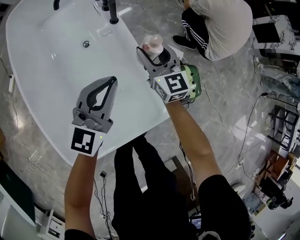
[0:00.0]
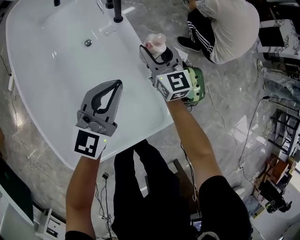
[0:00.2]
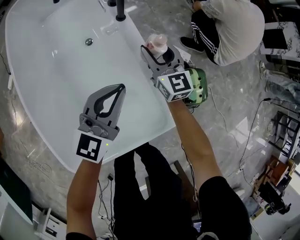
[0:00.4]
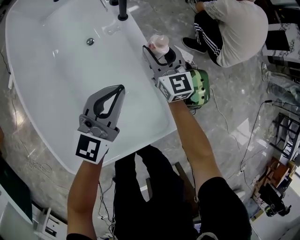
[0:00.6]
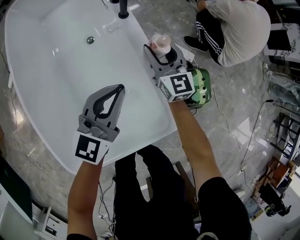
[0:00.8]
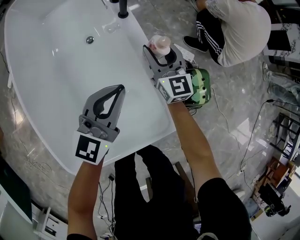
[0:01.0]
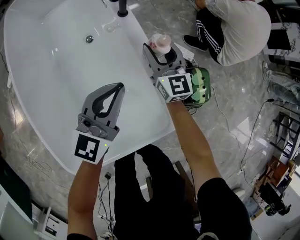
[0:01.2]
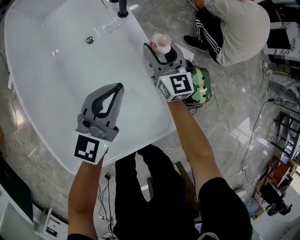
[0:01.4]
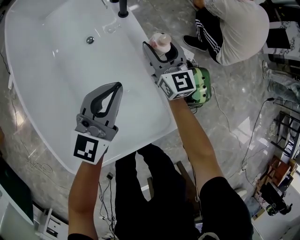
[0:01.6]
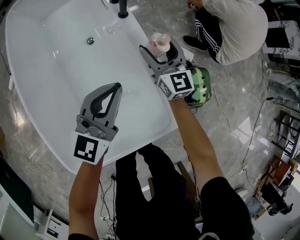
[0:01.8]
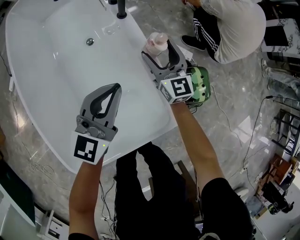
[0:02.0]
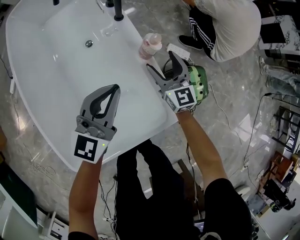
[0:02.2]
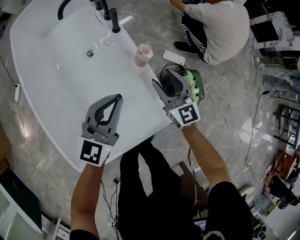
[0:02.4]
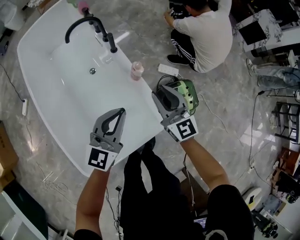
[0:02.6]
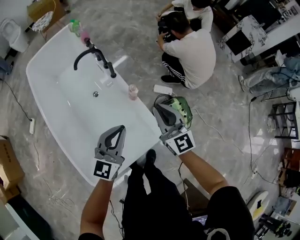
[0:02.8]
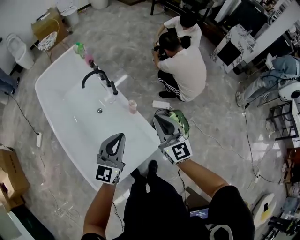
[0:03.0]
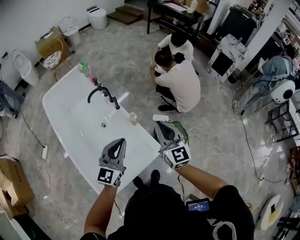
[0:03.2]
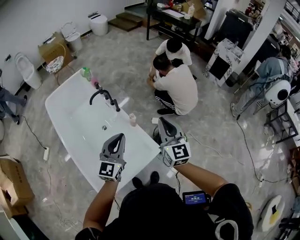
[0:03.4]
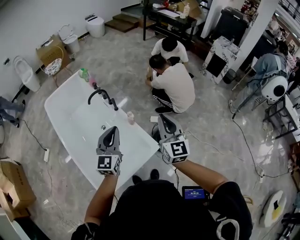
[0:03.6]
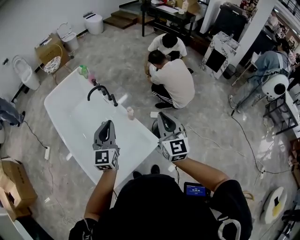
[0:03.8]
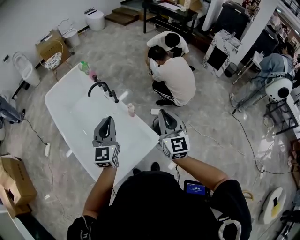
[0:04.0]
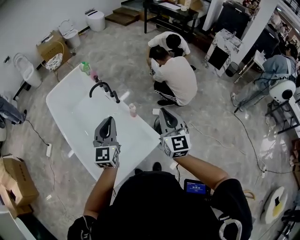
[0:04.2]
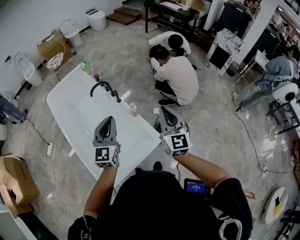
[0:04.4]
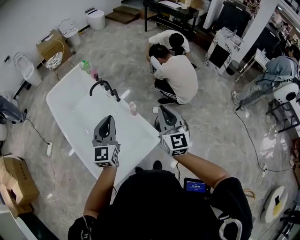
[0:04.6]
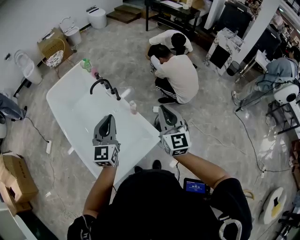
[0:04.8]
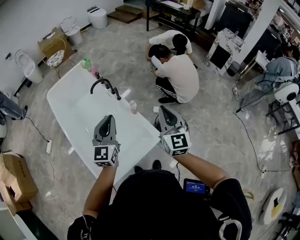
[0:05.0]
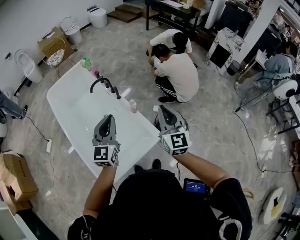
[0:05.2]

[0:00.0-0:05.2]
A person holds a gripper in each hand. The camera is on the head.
0:00.0 to 0:01.8: The grippers both shift downward by roughly 5 cm.
0:01.8 to 0:03.4: The right gripper travels upward and backward by roughly 60 cm, changes its angle by about 20 degrees, and closes. The left gripper is displaced upward by approximately 40 cm.
0:03.4 to 0:05.2: The grippers make only small movements.

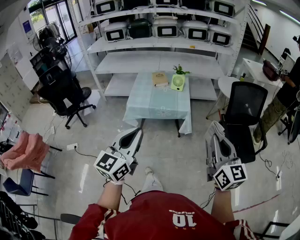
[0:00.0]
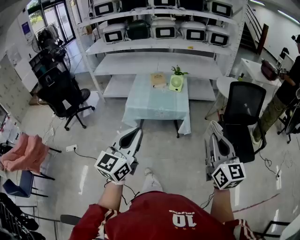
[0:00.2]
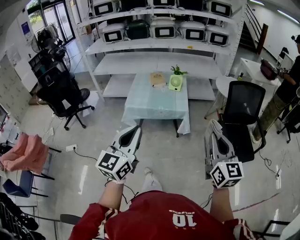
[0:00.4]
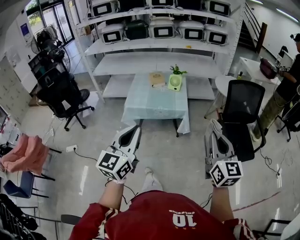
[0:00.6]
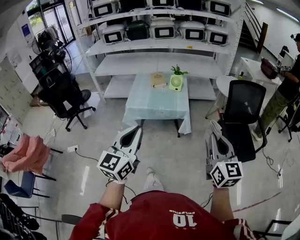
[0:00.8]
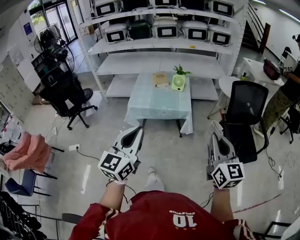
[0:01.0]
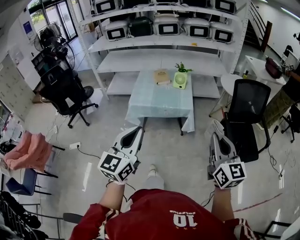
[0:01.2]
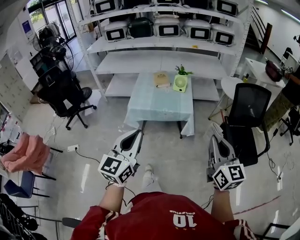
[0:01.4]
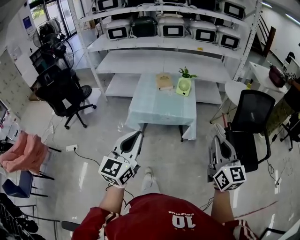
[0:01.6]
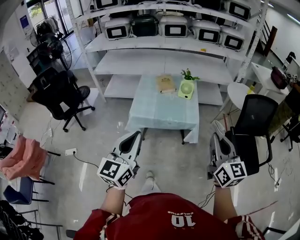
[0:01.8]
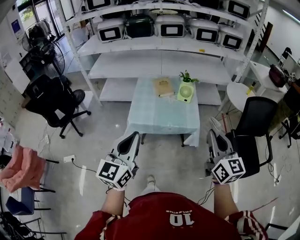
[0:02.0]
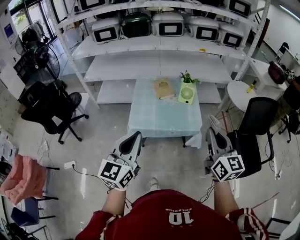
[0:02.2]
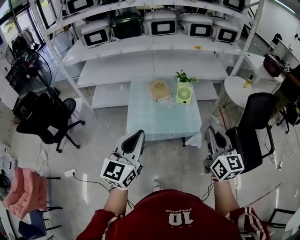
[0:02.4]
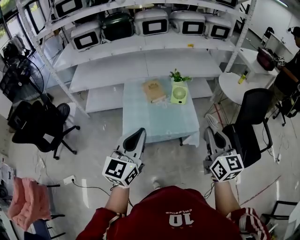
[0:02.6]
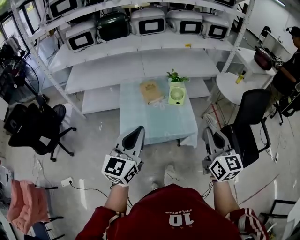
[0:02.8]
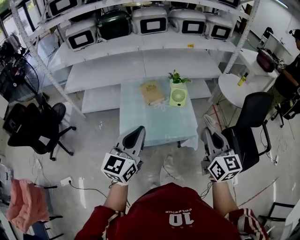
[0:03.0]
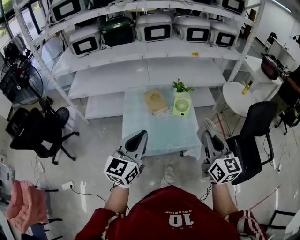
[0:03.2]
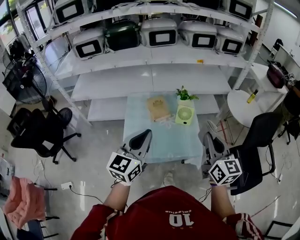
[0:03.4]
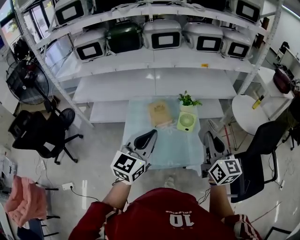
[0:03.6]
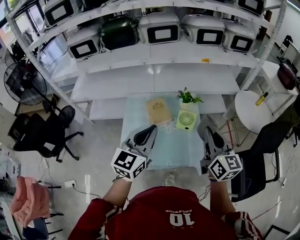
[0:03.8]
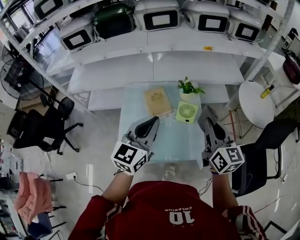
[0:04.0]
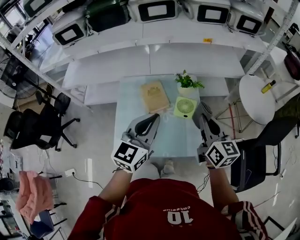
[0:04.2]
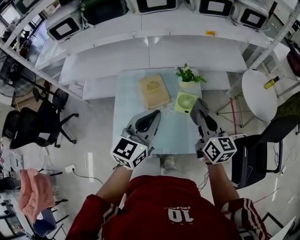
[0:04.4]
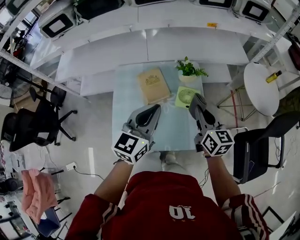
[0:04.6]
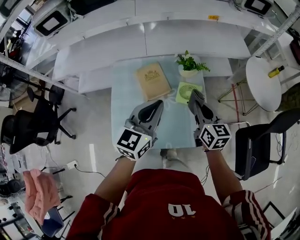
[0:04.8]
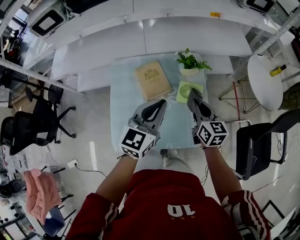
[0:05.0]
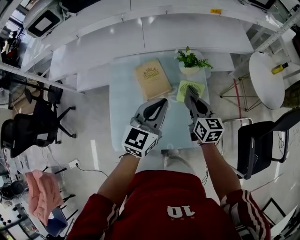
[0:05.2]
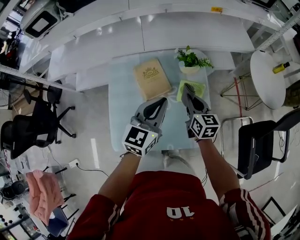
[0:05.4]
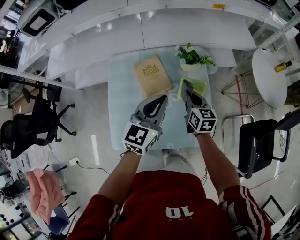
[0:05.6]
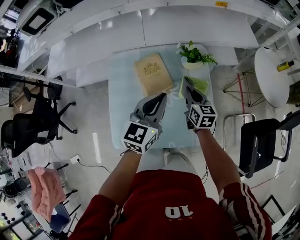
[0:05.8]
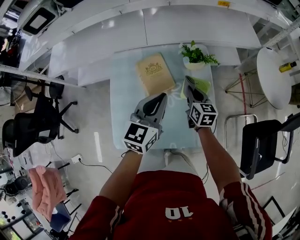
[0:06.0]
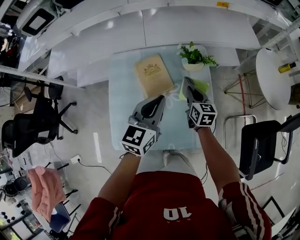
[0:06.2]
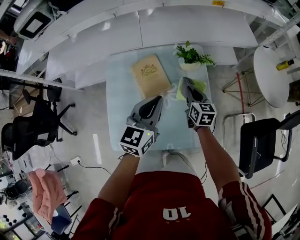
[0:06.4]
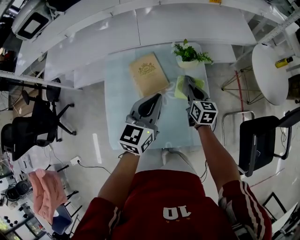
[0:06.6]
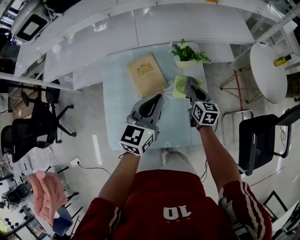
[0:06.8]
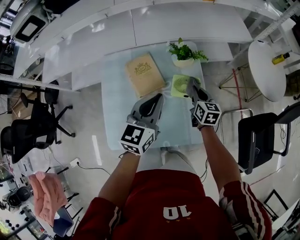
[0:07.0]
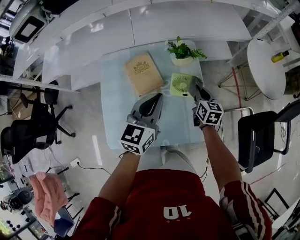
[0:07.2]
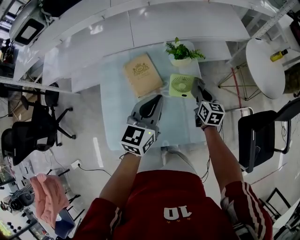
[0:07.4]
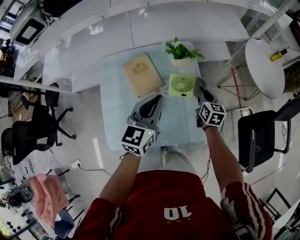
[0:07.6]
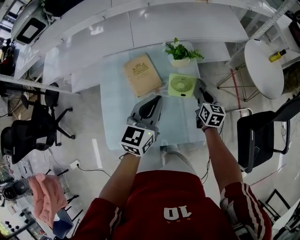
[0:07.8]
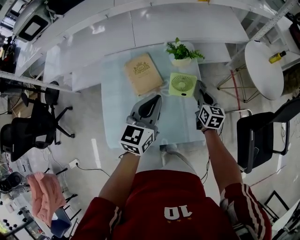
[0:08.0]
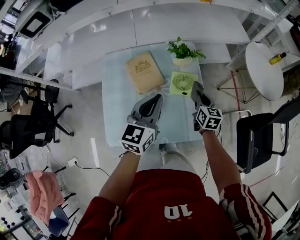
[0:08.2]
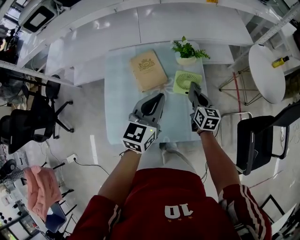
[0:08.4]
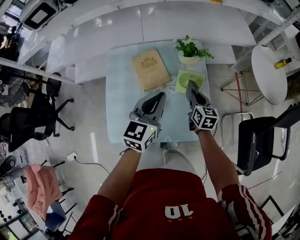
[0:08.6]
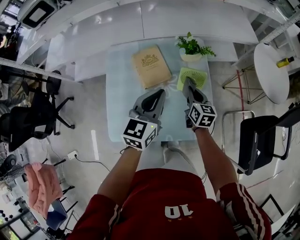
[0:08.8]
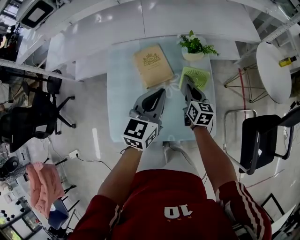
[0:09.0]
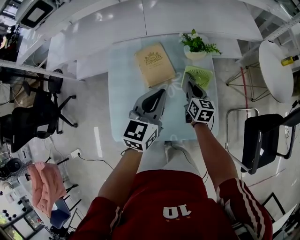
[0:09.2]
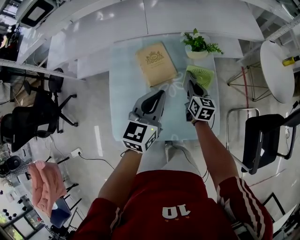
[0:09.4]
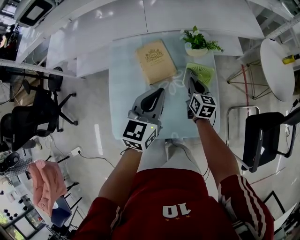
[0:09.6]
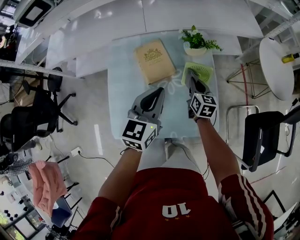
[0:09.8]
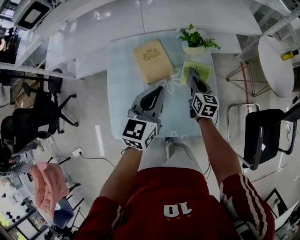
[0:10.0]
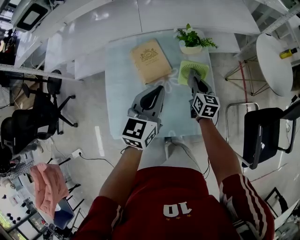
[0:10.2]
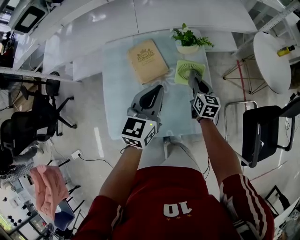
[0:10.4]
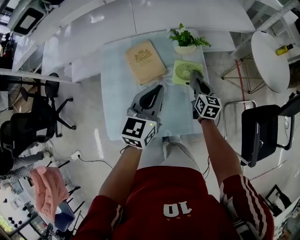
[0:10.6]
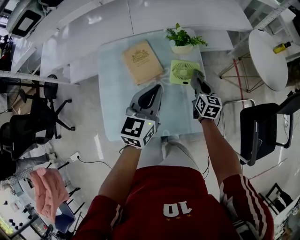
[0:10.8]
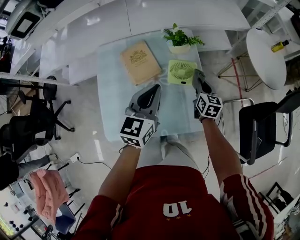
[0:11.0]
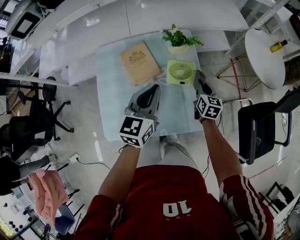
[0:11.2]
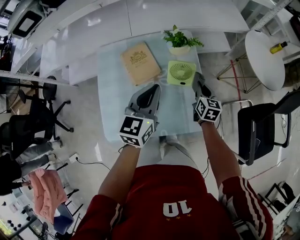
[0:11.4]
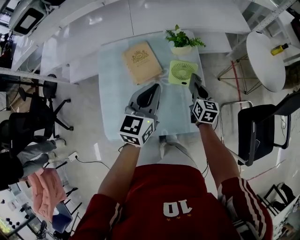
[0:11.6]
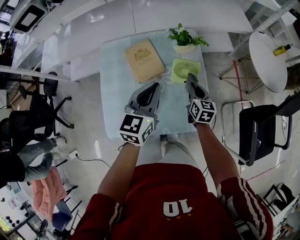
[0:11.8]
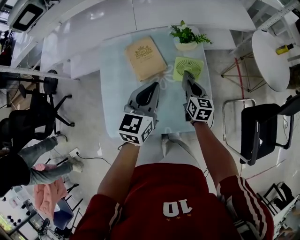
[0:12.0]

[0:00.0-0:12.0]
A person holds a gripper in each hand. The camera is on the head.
0:00.0 to 0:01.6: The right gripper shifts roughly 10 cm forward, while the left gripper travels forward and to the left by approximately 10 cm.
0:01.6 to 0:03.0: The right gripper is displaced forward and to the left by about 35 cm, while the left gripper shifts some 35 cm forward.
0:03.0 to 0:04.4: The left gripper is displaced forward by some 30 cm, while the right gripper travels forward and downward by about 35 cm.
0:04.4 to 0:06.0: The left gripper moves downward and forward, some 15 cm. Meanwhile the right gripper shifts approximately 25 cm downward and forward.
0:06.0 to 0:07.6: The right gripper moves to the right, about 15 cm.
0:07.6 to 0:09.0: The right gripper shifts approximately 10 cm to the left.
0:09.0 to 0:10.4: The right gripper heads to the right, covering some 5 cm.
0:10.4 to 0:12.0: The right gripper goes to the right and returns, approximately 5 cm each way.

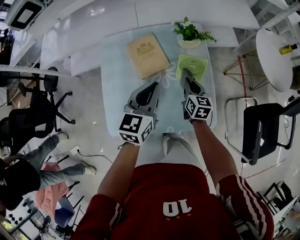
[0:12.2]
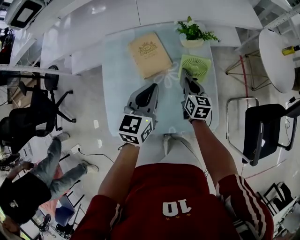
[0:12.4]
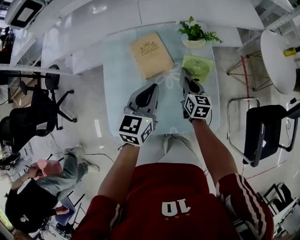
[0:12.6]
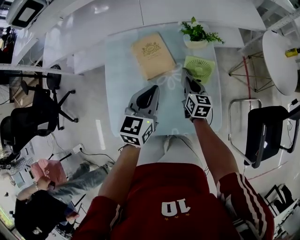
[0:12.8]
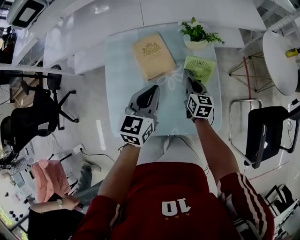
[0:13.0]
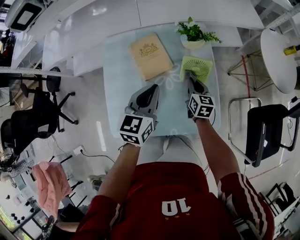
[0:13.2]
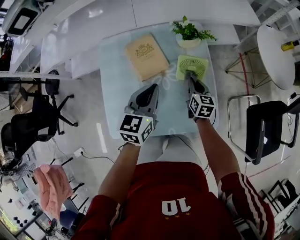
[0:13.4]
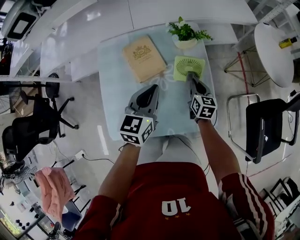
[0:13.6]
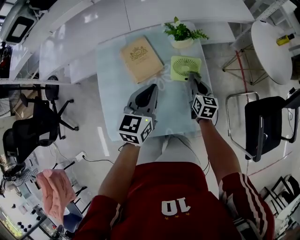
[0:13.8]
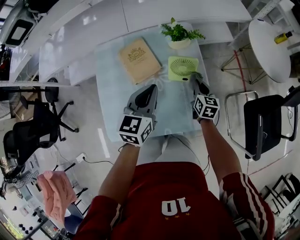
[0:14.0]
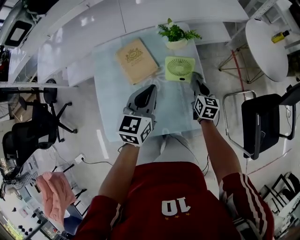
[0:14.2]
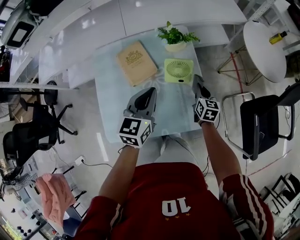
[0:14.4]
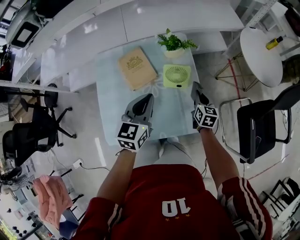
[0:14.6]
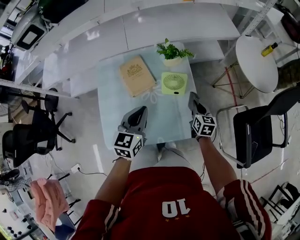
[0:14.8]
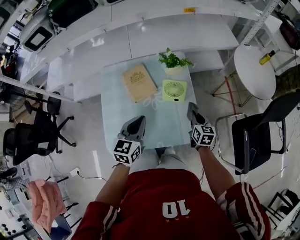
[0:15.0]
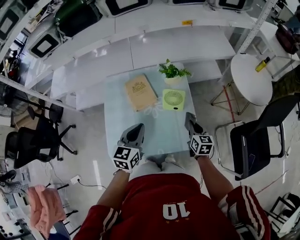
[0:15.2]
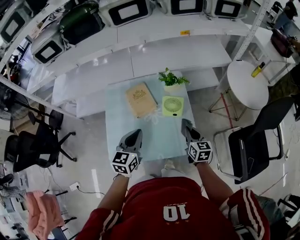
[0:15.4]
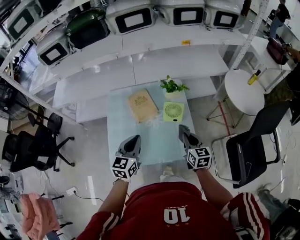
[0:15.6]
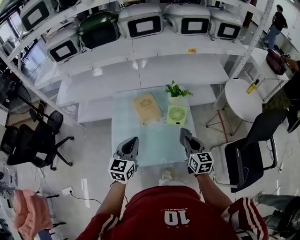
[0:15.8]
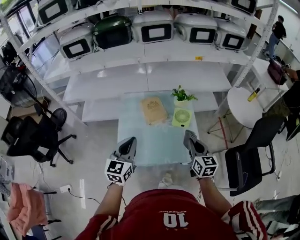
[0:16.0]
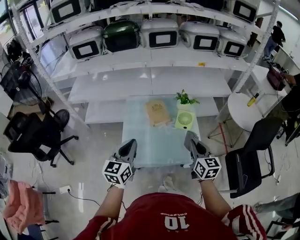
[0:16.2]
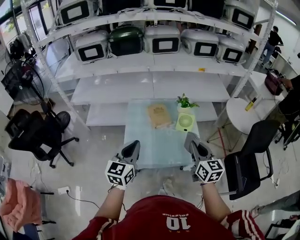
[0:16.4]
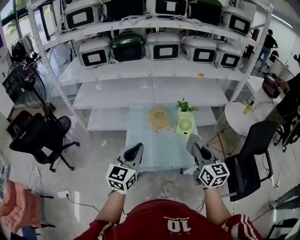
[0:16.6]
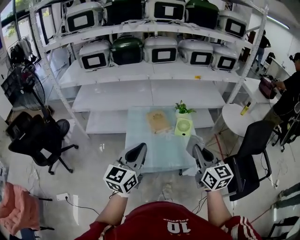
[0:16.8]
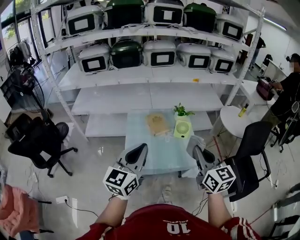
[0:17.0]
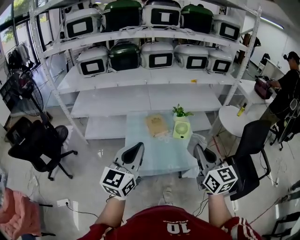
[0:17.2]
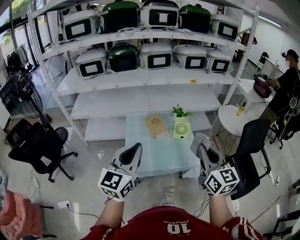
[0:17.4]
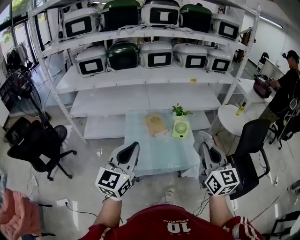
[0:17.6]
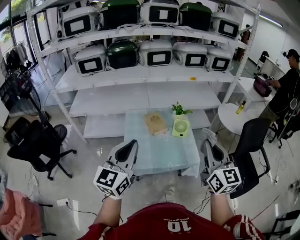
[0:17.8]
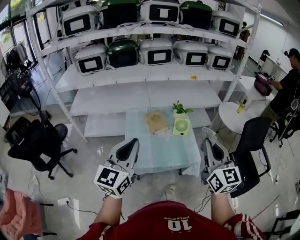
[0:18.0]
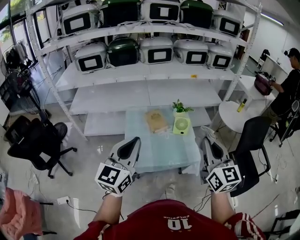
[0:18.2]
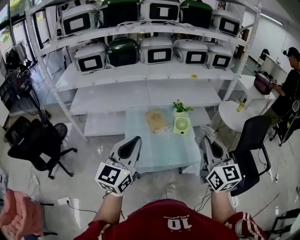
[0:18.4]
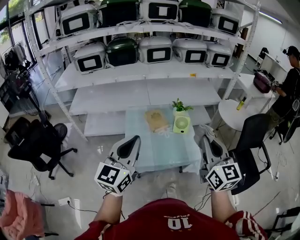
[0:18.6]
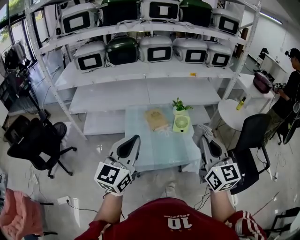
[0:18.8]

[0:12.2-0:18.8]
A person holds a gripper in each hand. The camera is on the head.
0:12.2 to 0:13.8: The right gripper moves to the right, approximately 5 cm.
0:13.8 to 0:15.4: The left gripper travels backward and upward by approximately 10 cm. The right gripper goes about 15 cm upward and backward.
0:15.4 to 0:17.2: The left gripper travels upward, backward and to the left by roughly 40 cm, and changes its angle by approximately 30 degrees; the right gripper shifts about 50 cm upward and backward, and rotates about 30 degrees.
0:17.2 to 0:18.8: There are only small adjustments of the grippers.
